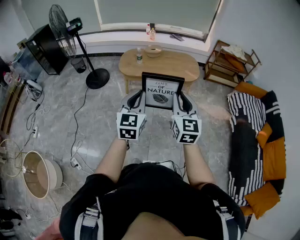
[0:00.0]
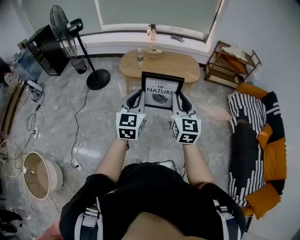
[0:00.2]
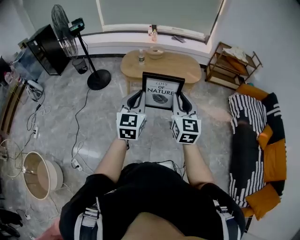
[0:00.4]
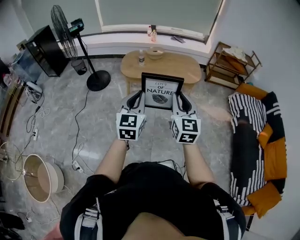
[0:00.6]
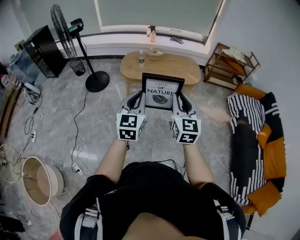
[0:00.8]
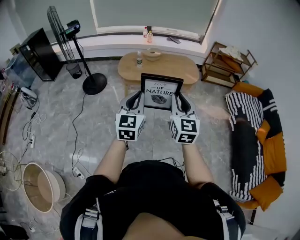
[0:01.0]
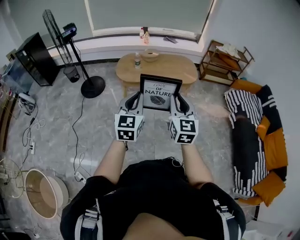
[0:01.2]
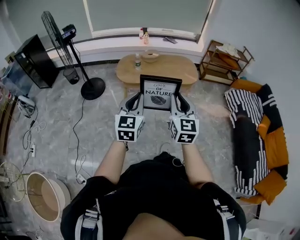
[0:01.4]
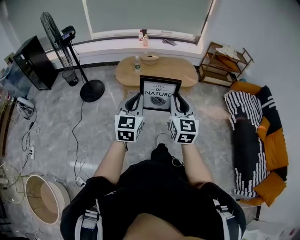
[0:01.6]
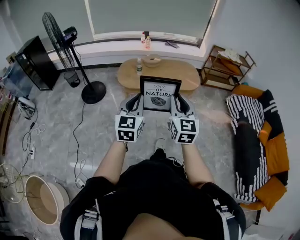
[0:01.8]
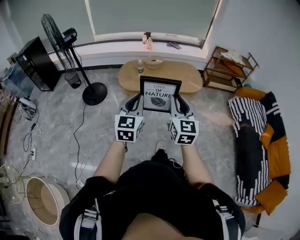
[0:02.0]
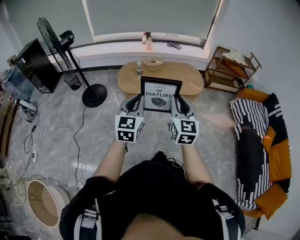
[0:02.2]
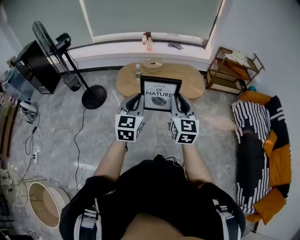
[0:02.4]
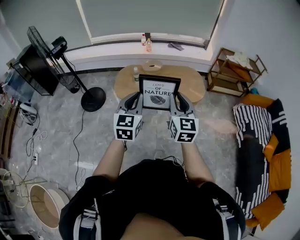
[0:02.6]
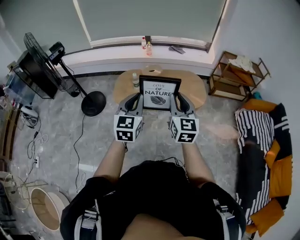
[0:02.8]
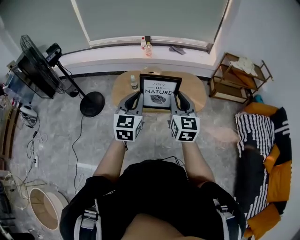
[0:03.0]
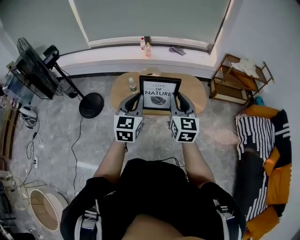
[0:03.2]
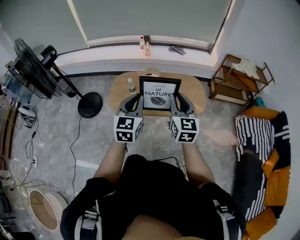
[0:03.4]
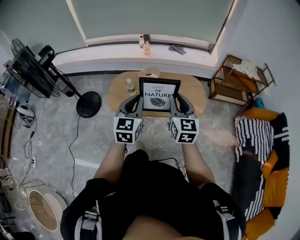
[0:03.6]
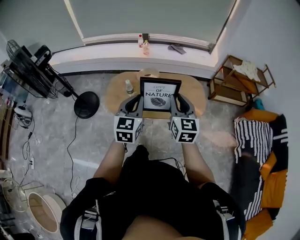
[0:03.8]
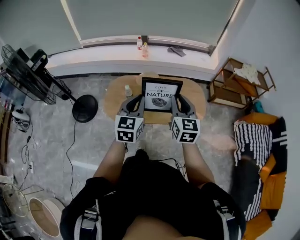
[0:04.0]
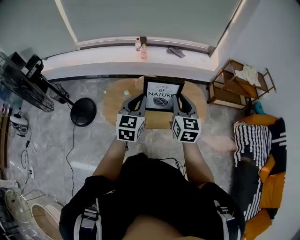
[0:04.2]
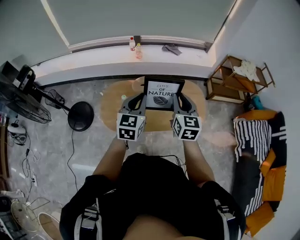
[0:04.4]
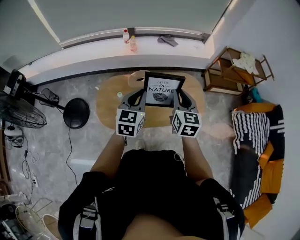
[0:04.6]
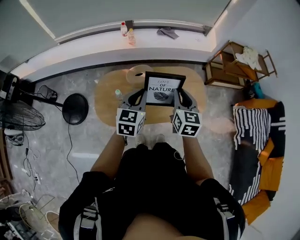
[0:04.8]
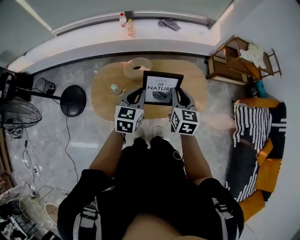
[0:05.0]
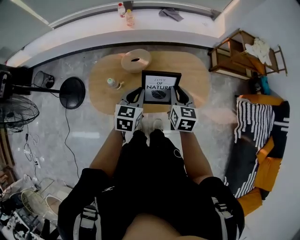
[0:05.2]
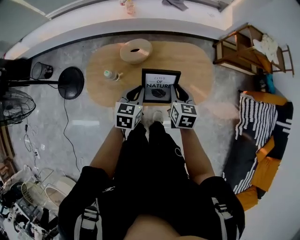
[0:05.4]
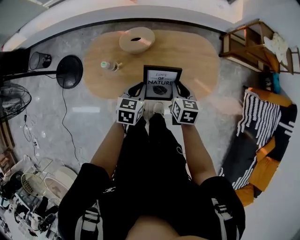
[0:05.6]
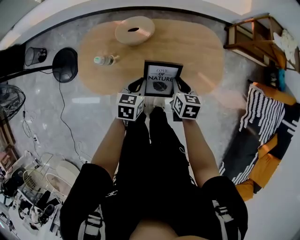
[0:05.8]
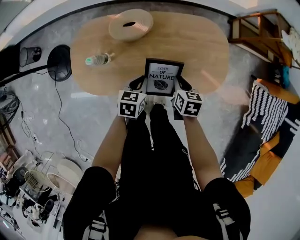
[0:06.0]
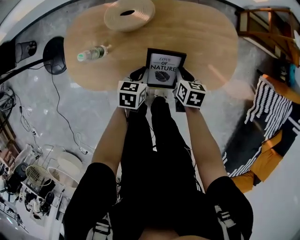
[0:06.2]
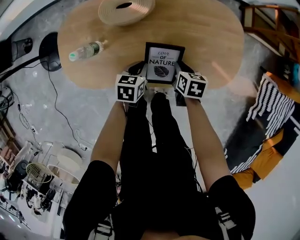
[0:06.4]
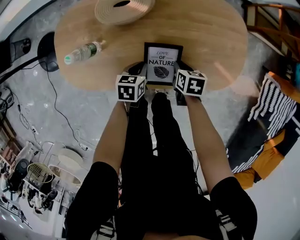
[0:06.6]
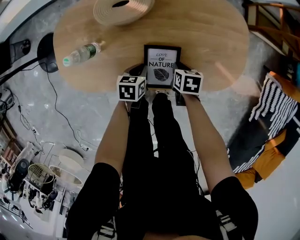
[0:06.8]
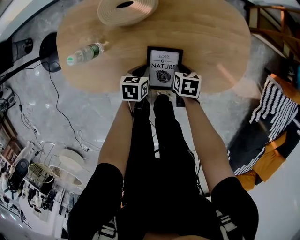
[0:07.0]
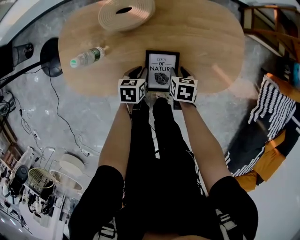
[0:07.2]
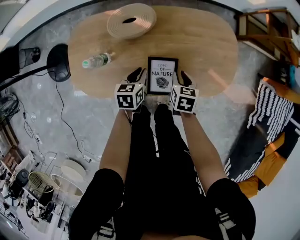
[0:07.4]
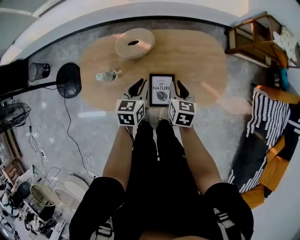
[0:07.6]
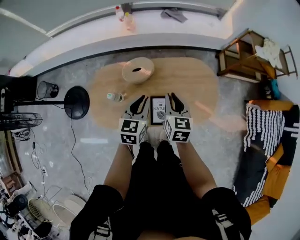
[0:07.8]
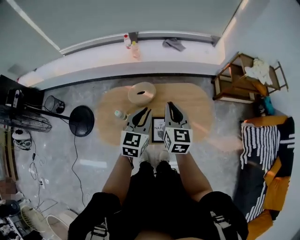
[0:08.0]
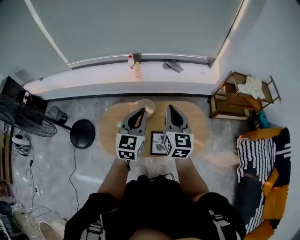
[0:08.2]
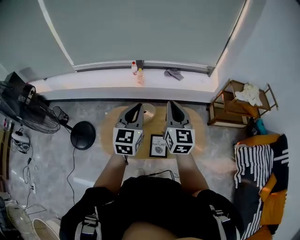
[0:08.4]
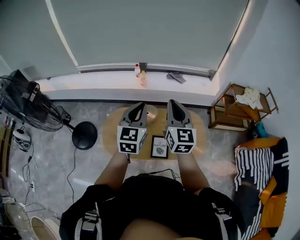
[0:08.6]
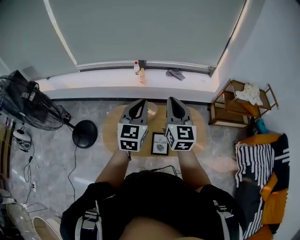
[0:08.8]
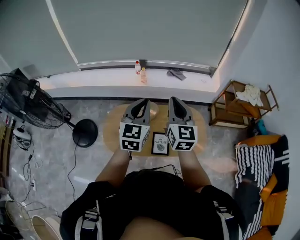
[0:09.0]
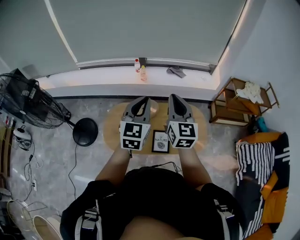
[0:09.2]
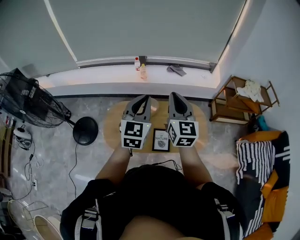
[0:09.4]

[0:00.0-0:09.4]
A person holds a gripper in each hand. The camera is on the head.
0.0 to 1.6 s: The left gripper goes about 20 cm to the left and forward, while the right gripper shifts approximately 15 cm to the left.
1.6 to 3.2 s: The two grippers travel together, forward, approximately 50 cm.
3.2 to 4.8 s: The two grippers go approximately 40 cm forward.
4.8 to 6.2 s: Both grippers move downward, approximately 50 cm. The left gripper points its fingers approximately 30 degrees further downward. Meanwhile the right gripper points its fingers roughly 40 degrees further downward.
6.2 to 7.8 s: The two grippers go approximately 35 cm upward. The left gripper changes its angle by approximately 30 degrees. Meanwhile the right gripper swivels some 30 degrees, and opens, then closes once more.
7.8 to 9.4 s: Both grippers travel together upward, some 35 cm. The right gripper angles its fingers upward, by some 30 degrees. The left gripper turns by approximately 30 degrees.

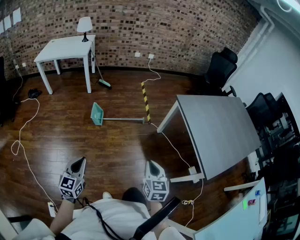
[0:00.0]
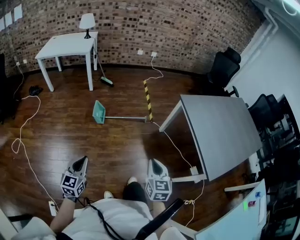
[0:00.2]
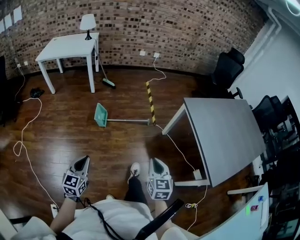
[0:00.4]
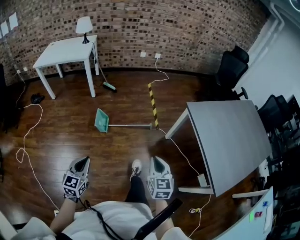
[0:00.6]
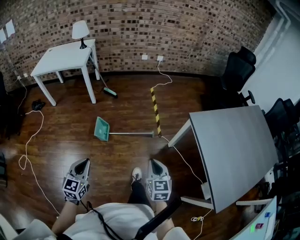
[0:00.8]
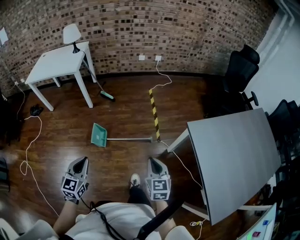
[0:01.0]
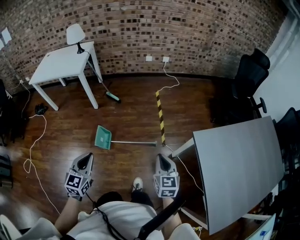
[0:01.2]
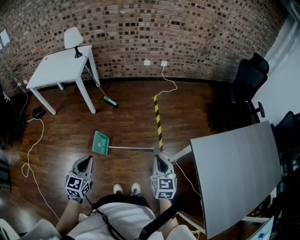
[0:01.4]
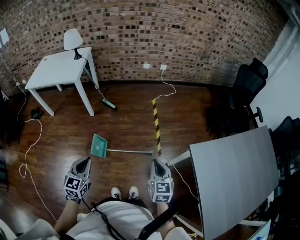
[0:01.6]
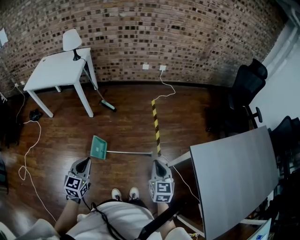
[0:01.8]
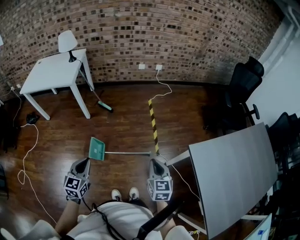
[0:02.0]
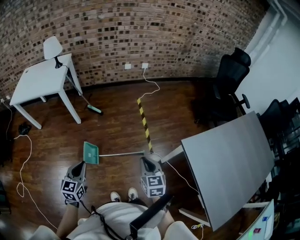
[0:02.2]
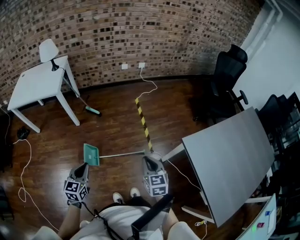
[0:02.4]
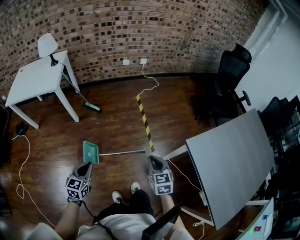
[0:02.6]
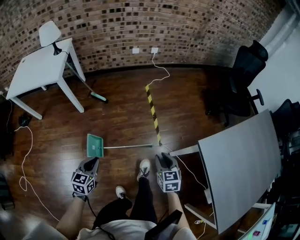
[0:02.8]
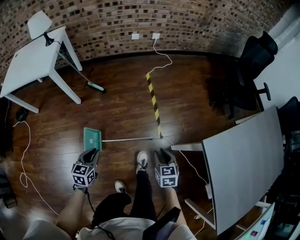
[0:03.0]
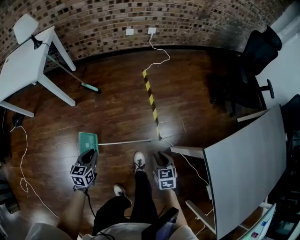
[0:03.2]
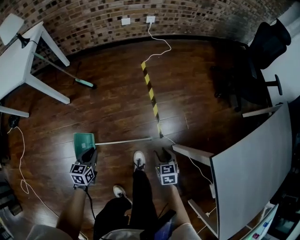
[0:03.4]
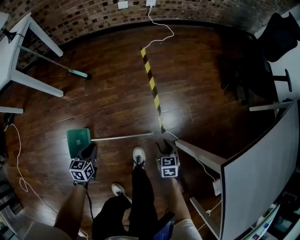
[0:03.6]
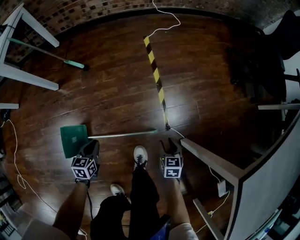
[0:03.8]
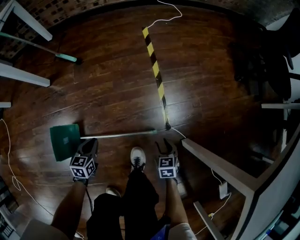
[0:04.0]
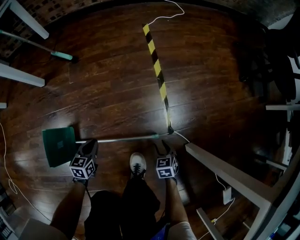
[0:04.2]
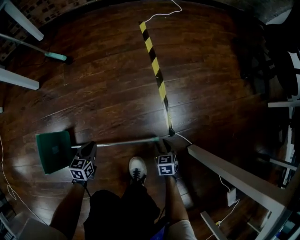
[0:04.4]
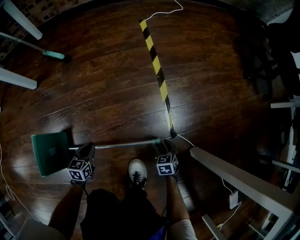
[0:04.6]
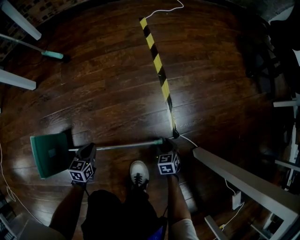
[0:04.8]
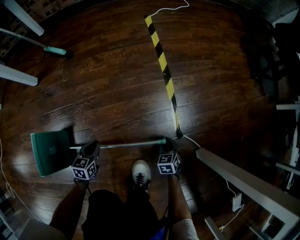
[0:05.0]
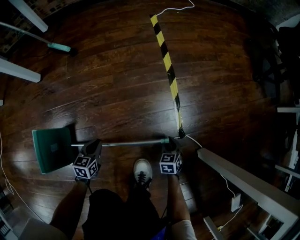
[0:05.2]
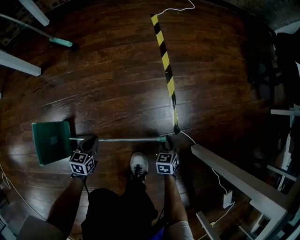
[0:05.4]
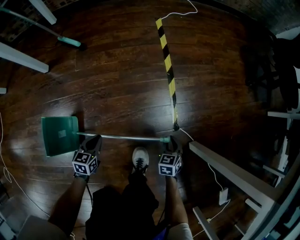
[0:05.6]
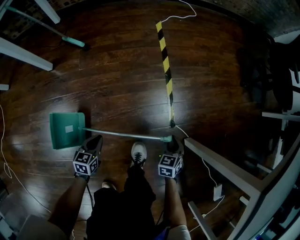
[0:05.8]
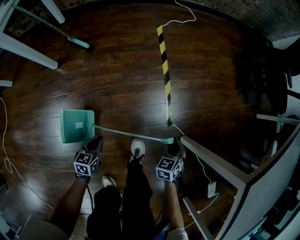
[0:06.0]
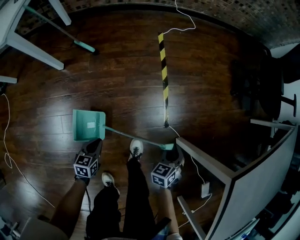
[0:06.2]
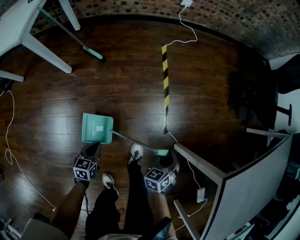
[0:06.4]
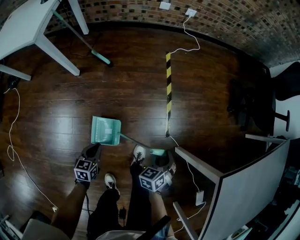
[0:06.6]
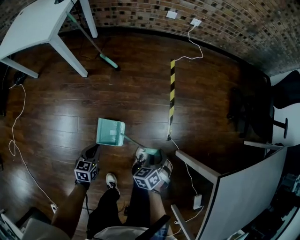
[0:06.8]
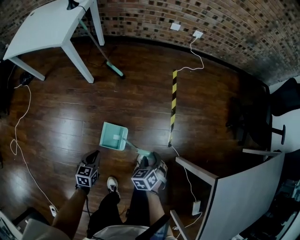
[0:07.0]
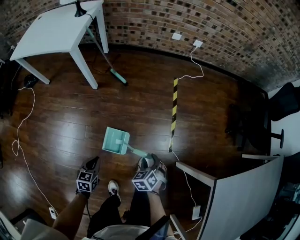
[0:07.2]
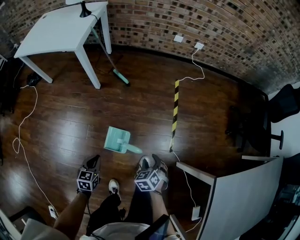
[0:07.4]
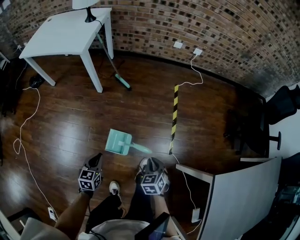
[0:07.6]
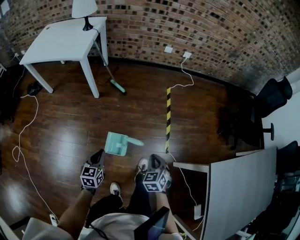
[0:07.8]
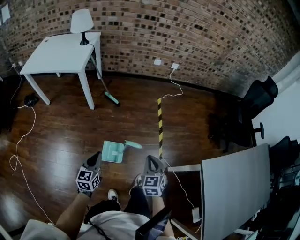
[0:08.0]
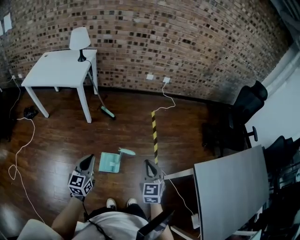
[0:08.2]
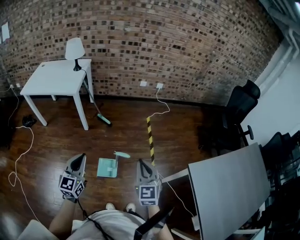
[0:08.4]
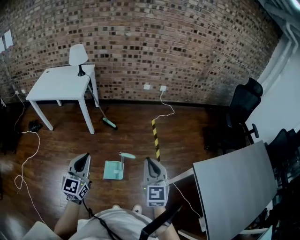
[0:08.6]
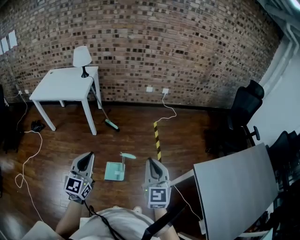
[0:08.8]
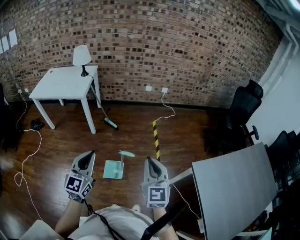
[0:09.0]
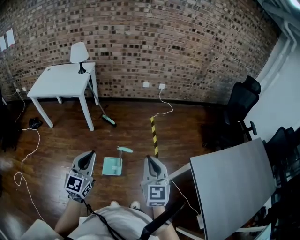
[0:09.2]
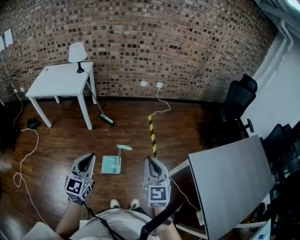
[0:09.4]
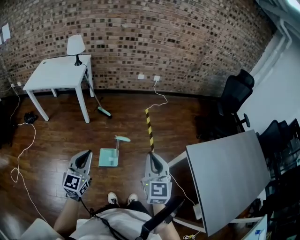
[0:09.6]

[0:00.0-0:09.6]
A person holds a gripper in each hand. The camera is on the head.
0.0 to 1.6 s: Both grippers are carried forward, approximately 50 cm.
1.6 to 3.2 s: Both grippers move downward and forward, some 30 cm. The right gripper rotates roughly 20 degrees, and opens up. Meanwhile the left gripper swivels some 20 degrees.
3.2 to 4.8 s: Both grippers travel together downward, about 60 cm.
4.8 to 6.4 s: Both grippers travel together upward, some 40 cm. The right gripper swivels roughly 20 degrees.
6.4 to 8.0 s: Both grippers move upward, roughly 35 cm. The right gripper changes its angle by some 40 degrees, and closes. Meanwhile the left gripper swivels roughly 30 degrees.
8.0 to 9.6 s: The grippers both shift upward and backward by some 30 cm. The right gripper rotates approximately 30 degrees, while the left gripper changes its angle by roughly 30 degrees.

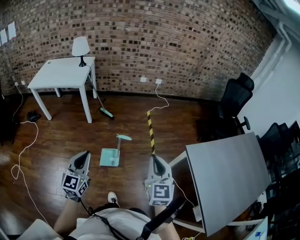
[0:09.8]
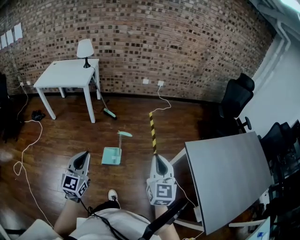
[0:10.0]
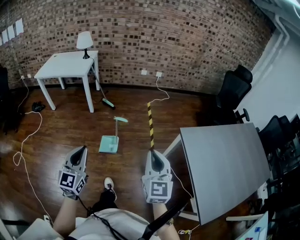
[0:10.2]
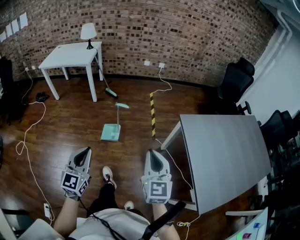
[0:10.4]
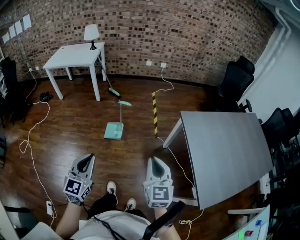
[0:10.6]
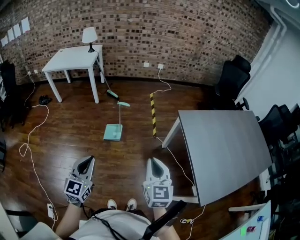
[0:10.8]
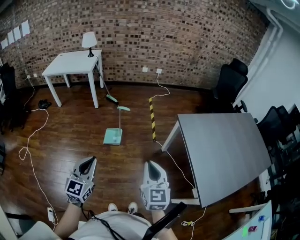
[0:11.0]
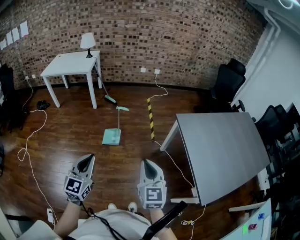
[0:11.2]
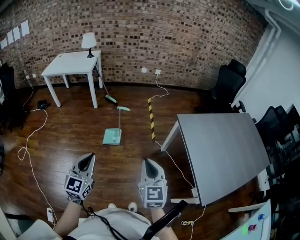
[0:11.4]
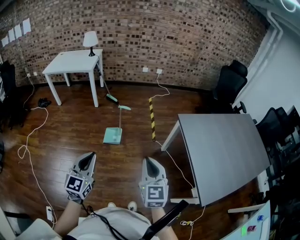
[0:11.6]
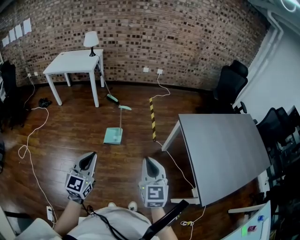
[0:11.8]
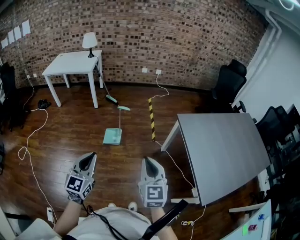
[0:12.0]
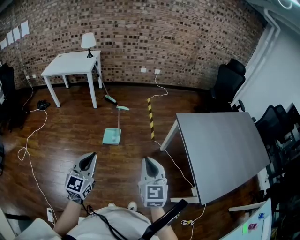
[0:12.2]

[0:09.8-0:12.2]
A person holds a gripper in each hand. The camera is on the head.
9.8 to 11.0 s: Both grippers move backward, some 30 cm.
11.0 to 12.2 s: The grippers move only a little.

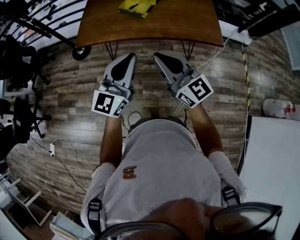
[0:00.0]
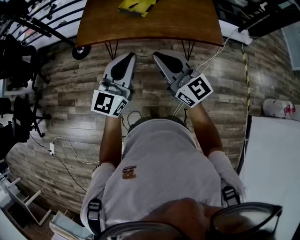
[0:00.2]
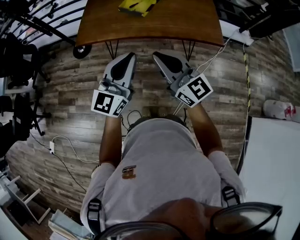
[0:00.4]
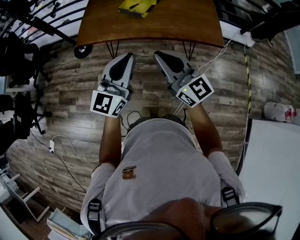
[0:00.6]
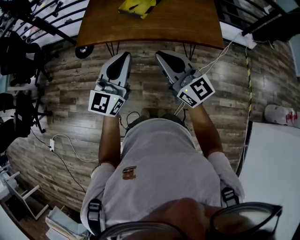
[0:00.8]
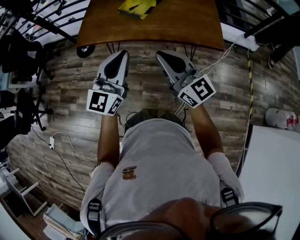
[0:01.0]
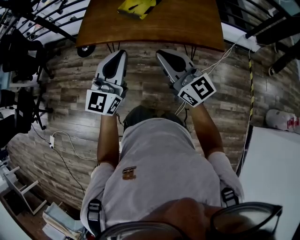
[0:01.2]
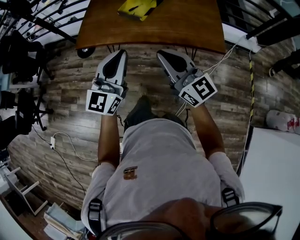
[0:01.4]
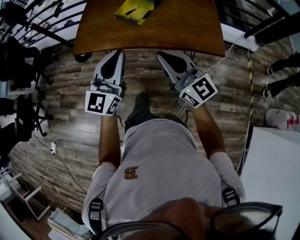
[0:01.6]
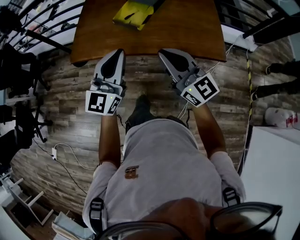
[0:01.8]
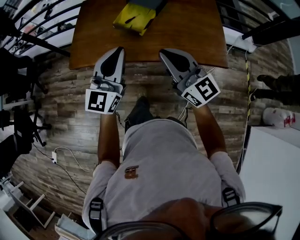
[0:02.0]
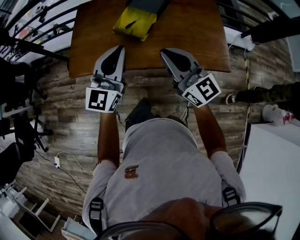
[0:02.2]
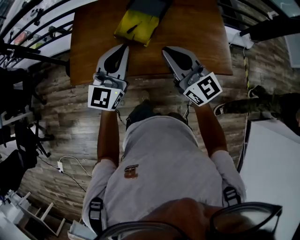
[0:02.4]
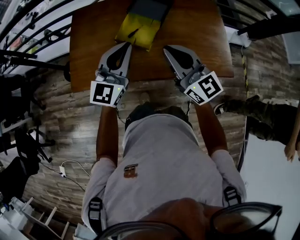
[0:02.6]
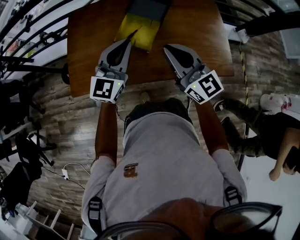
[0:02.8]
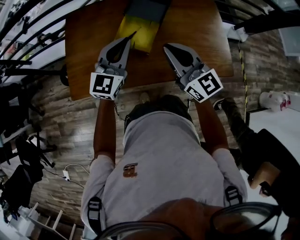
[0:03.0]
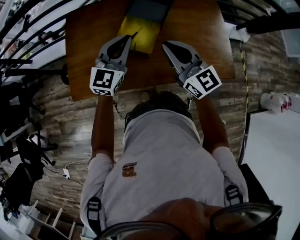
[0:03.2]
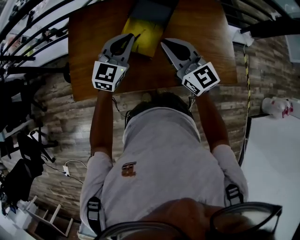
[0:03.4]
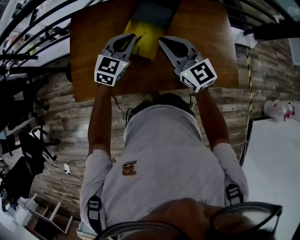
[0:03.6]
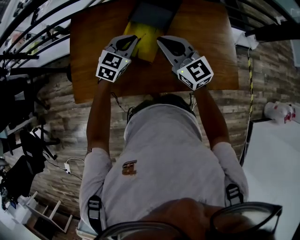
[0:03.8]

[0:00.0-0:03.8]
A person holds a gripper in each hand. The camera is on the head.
0.0 to 1.2 s: The left gripper goes some 5 cm to the right. Meanwhile the right gripper shifts about 10 cm to the right.
1.2 to 2.6 s: The two grippers travel together, forward, roughly 40 cm.
2.6 to 3.8 s: The right gripper moves forward, approximately 15 cm, while the left gripper travels forward and downward by about 25 cm, and angles its fingers downward, by roughly 30 degrees.
